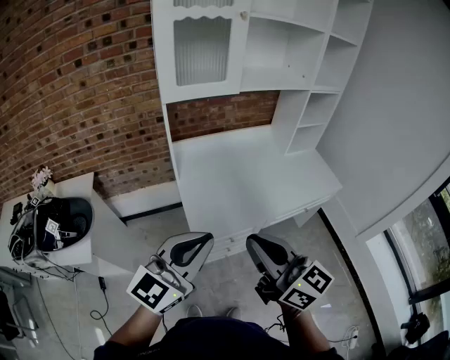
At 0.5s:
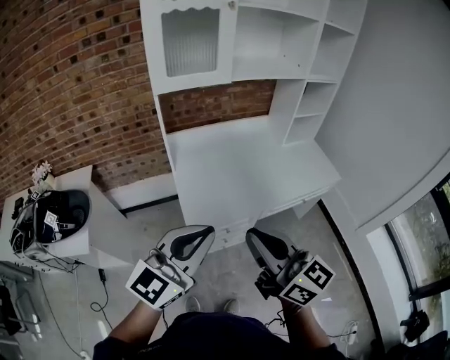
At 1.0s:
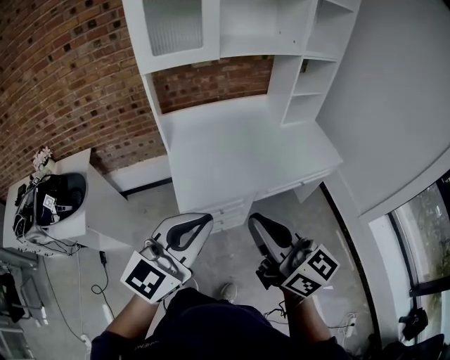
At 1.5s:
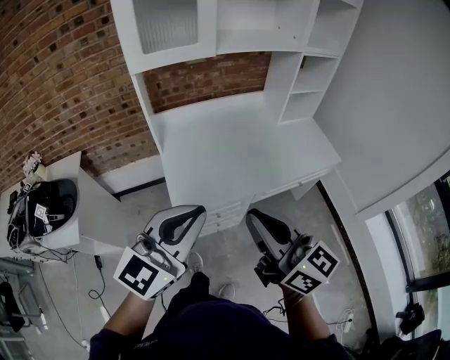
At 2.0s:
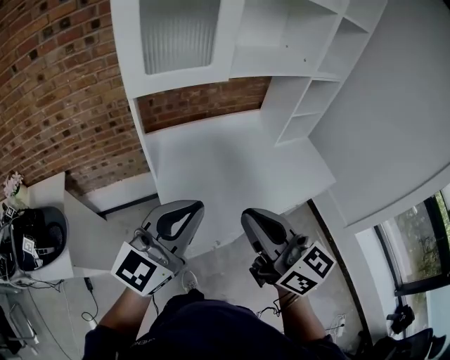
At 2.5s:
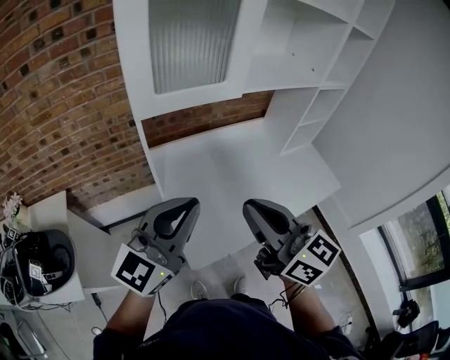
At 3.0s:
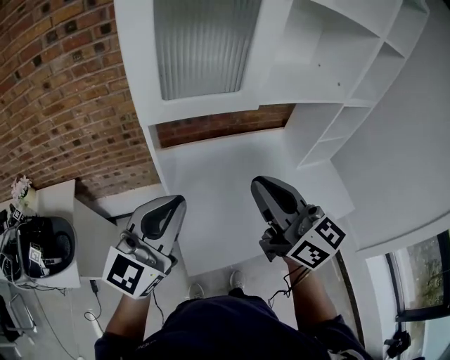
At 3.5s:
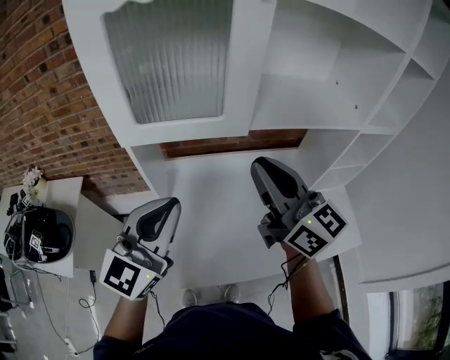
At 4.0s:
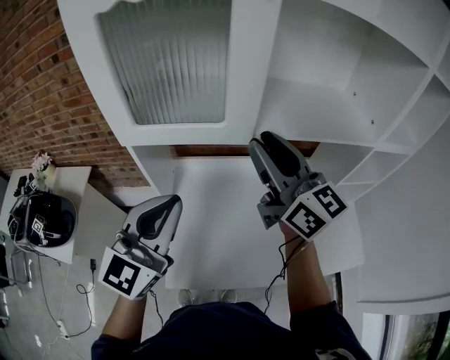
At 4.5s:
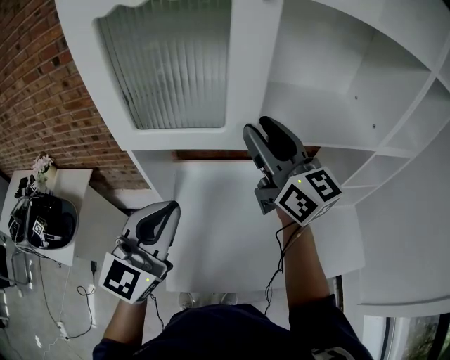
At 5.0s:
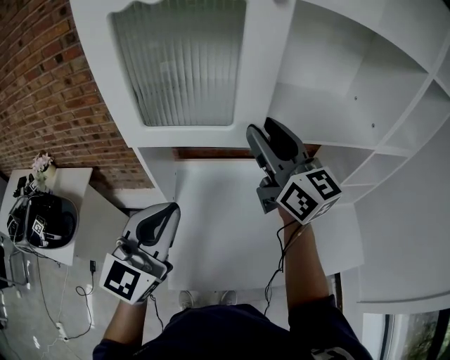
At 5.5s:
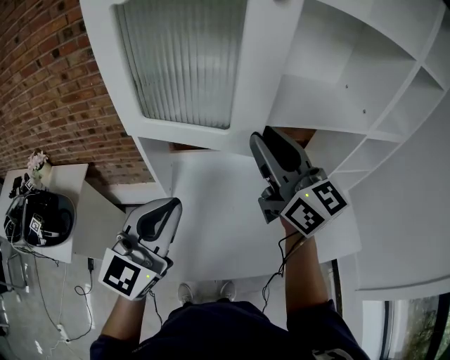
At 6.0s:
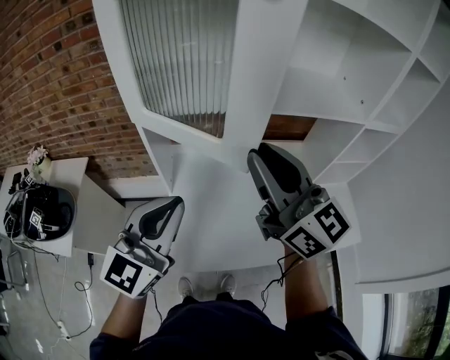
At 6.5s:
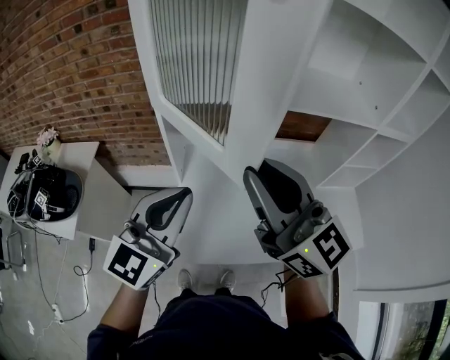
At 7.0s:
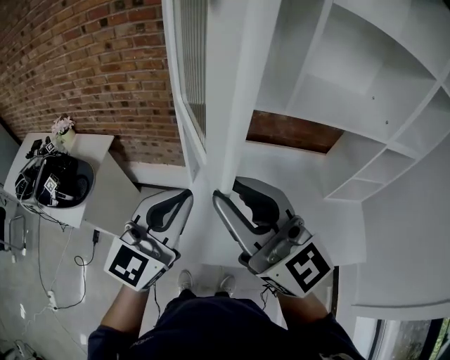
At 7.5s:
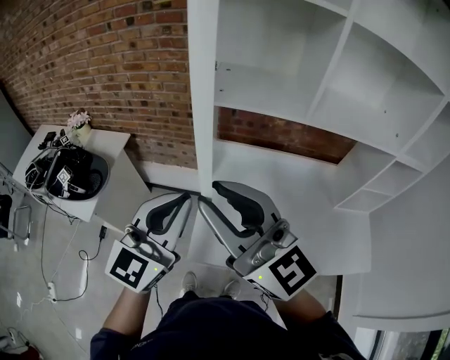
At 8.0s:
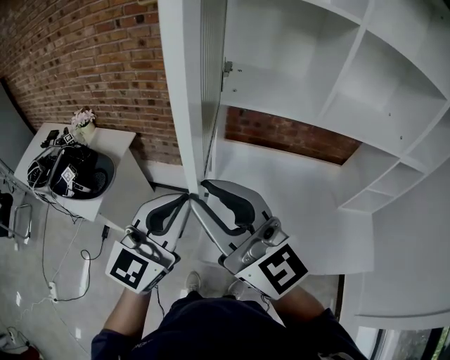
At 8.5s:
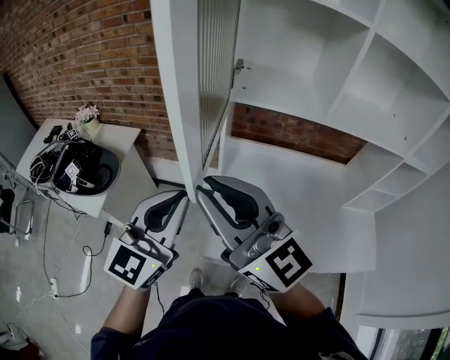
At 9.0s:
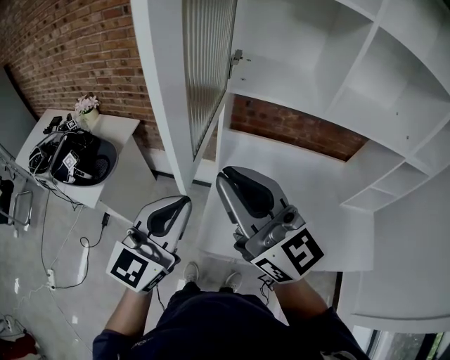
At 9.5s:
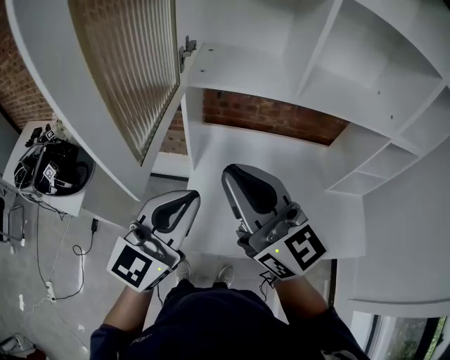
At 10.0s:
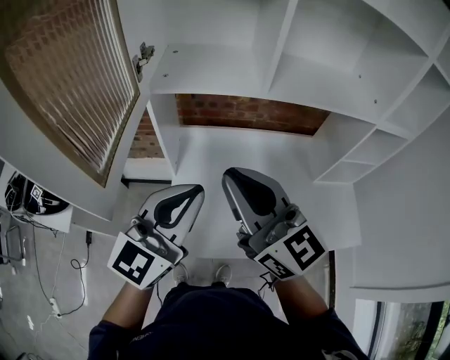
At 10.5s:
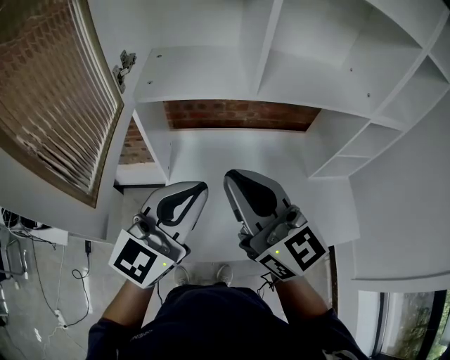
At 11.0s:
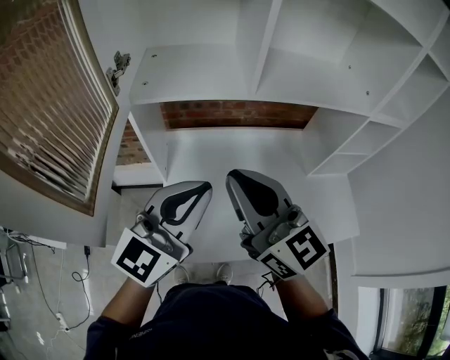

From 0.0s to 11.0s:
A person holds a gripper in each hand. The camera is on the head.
From 0.0s to 2.0s: Both grippers move forward, approximately 15 cm.
From 2.0s to 3.5s: The right gripper shifts roughly 30 cm forward, while the left gripper moves forward, roughly 20 cm, and swivels some 20 degrees.
From 3.5s to 5.5s: The right gripper goes forward and returns, roughly 10 cm each way, and opens.
From 5.5s to 7.5s: The left gripper goes approximately 10 cm to the left and backward. Meanwhile the right gripper is displaced to the left and backward by approximately 25 cm, and turns by approximately 30 degrees.
From 7.5s to 9.0s: The left gripper changes place by about 5 cm.
From 9.0s to 11.0s: The grippers both shift to the right and forward by approximately 20 cm. The right gripper turns by some 20 degrees; the left gripper rotates some 20 degrees.

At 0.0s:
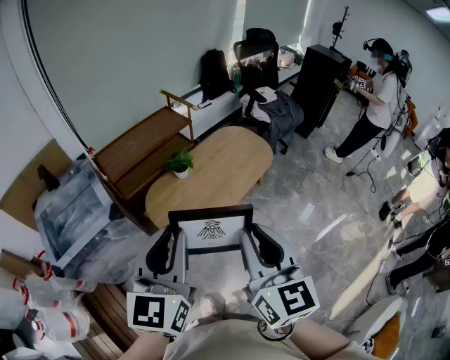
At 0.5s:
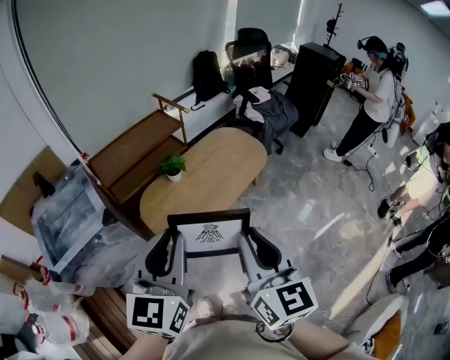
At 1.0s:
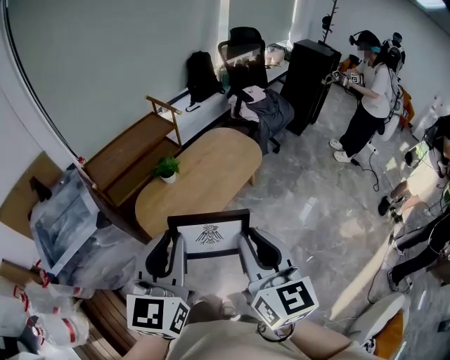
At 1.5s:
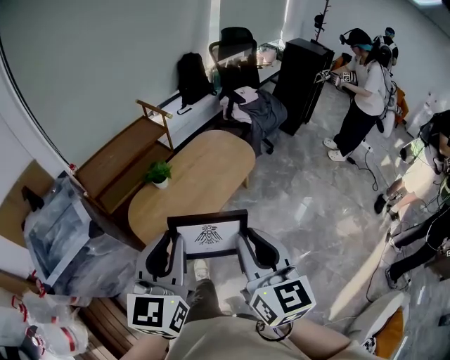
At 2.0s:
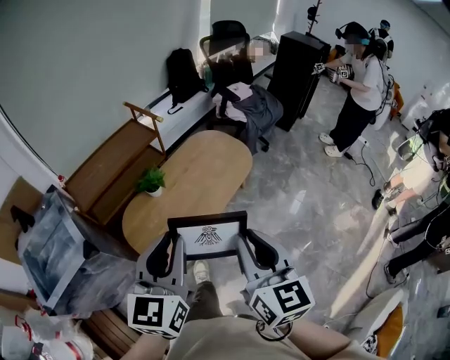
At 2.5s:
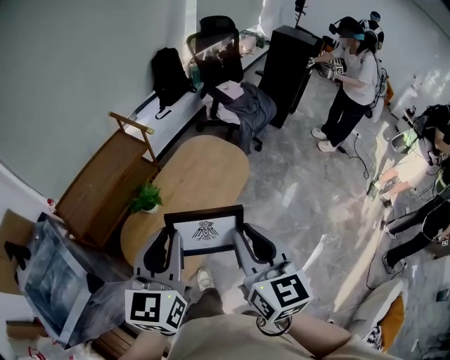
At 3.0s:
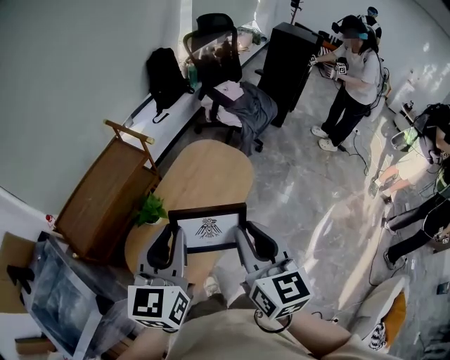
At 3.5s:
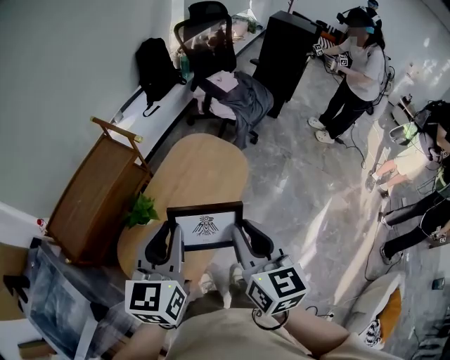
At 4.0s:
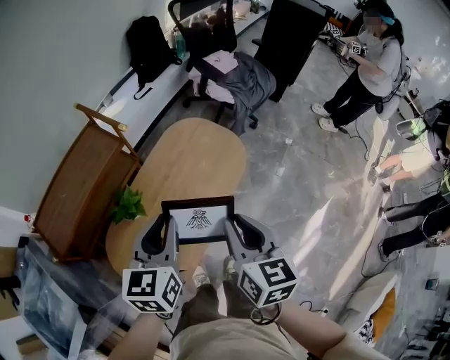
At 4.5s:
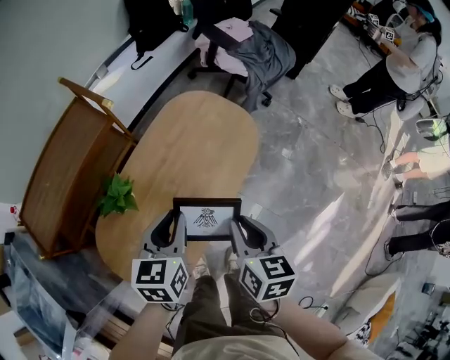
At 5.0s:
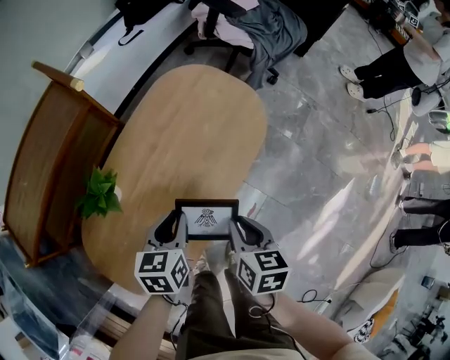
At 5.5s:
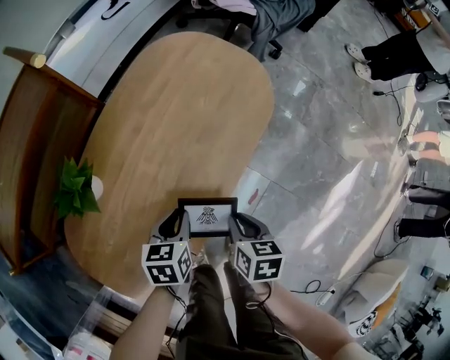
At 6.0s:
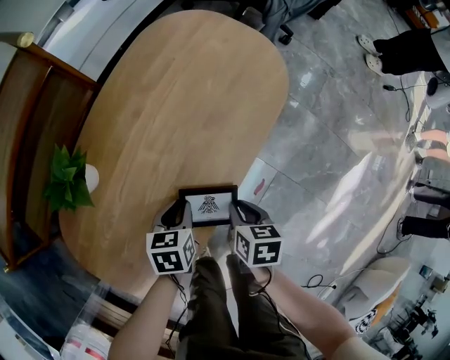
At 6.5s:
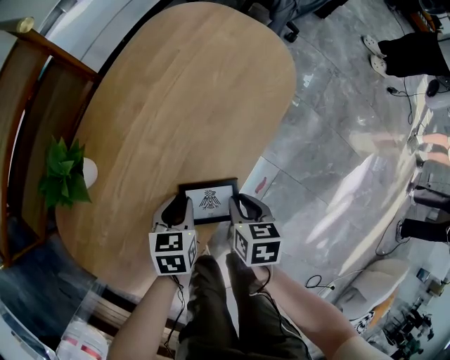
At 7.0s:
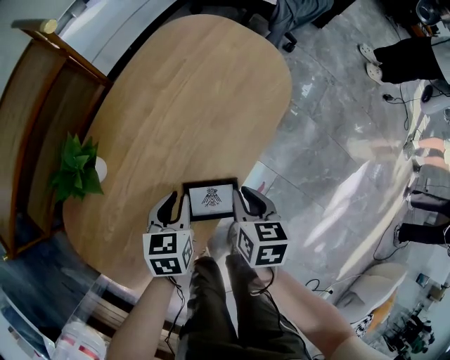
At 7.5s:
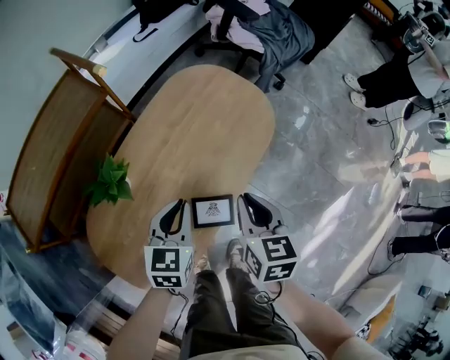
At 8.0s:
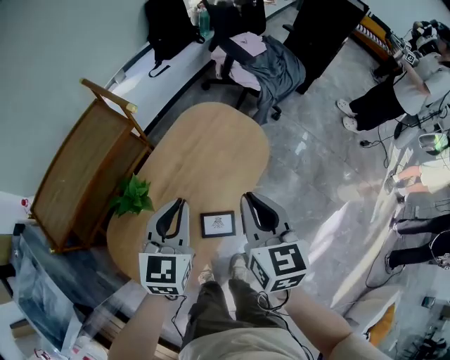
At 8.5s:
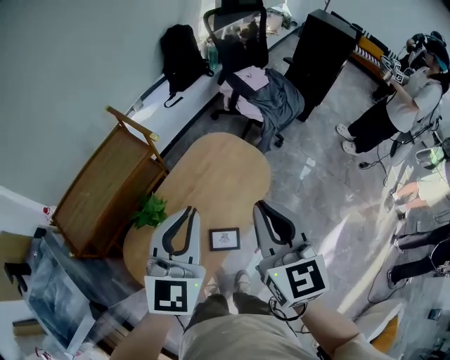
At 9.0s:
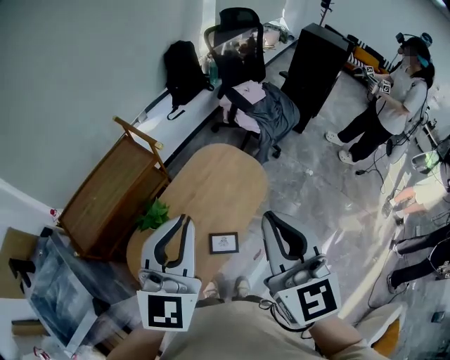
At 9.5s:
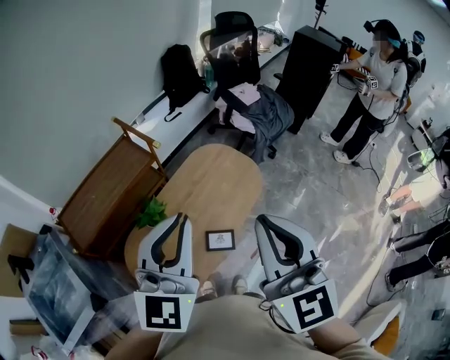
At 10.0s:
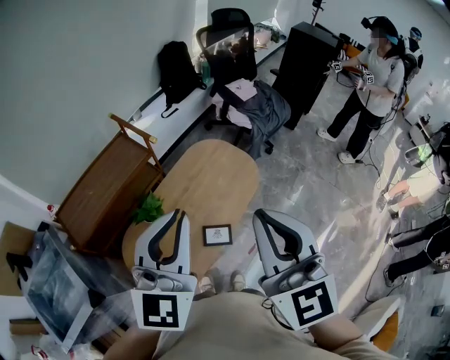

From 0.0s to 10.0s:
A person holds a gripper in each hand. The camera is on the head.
From 0.0s to 2.0s: Both grippers move forward, to the right and downward, about 15 cm.
From 2.0s to 4.0s: The grippers both shift forward and downward by about 35 cm.
From 4.0s to 6.0s: Both grippers move downward, roughly 60 cm. The right gripper tilts its fingers roughly 30 degrees downward, while the left gripper tips its fingers downward by some 30 degrees.
From 6.0s to 8.0s: Both grippers travel together upward, approximately 50 cm. The left gripper points its fingers roughly 40 degrees further upward, while the right gripper angles its fingers upward, by some 30 degrees.
From 8.0s to 10.0s: The two grippers go about 35 cm upward and backward. The right gripper rotates about 30 degrees, while the left gripper changes its angle by about 20 degrees.

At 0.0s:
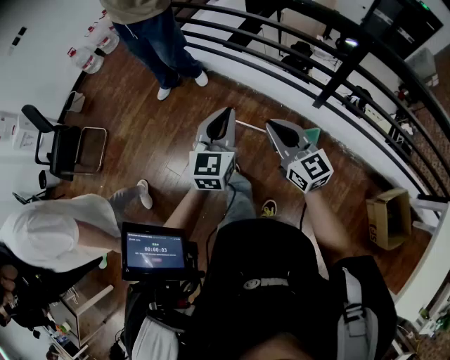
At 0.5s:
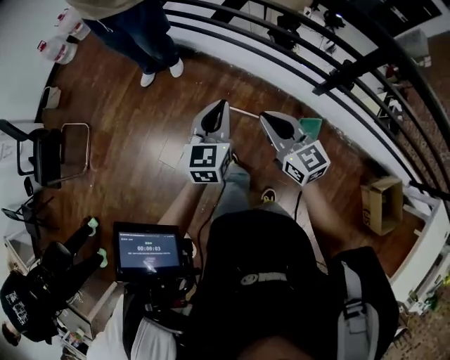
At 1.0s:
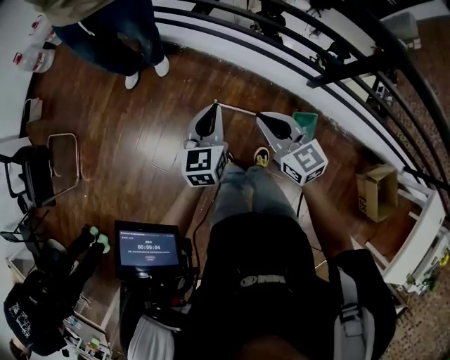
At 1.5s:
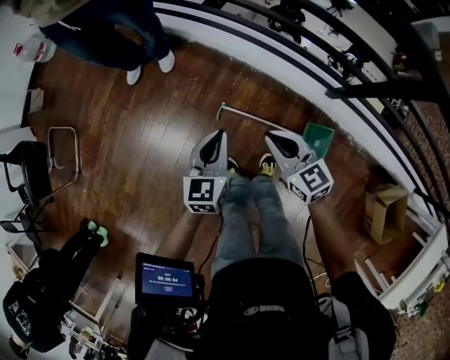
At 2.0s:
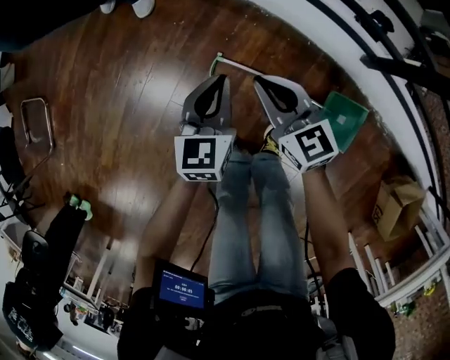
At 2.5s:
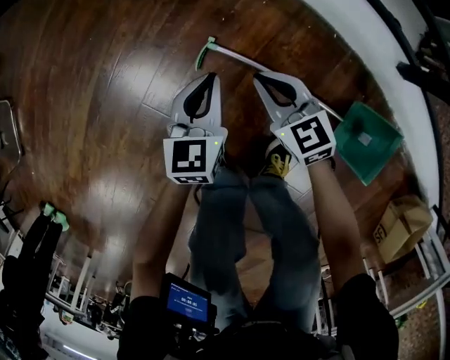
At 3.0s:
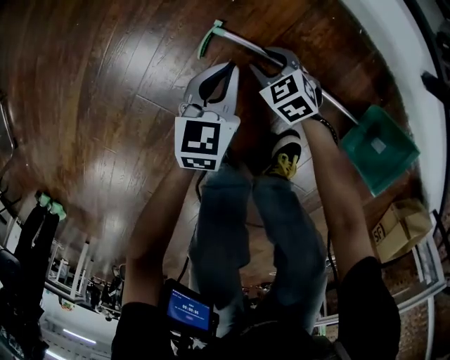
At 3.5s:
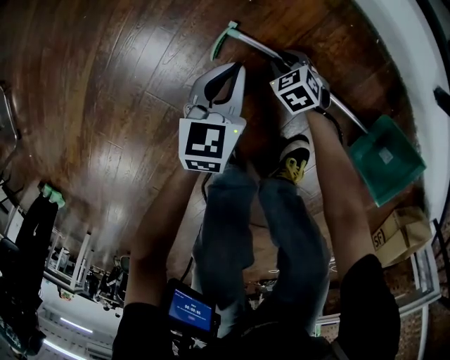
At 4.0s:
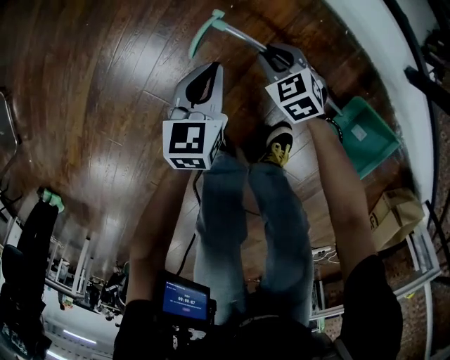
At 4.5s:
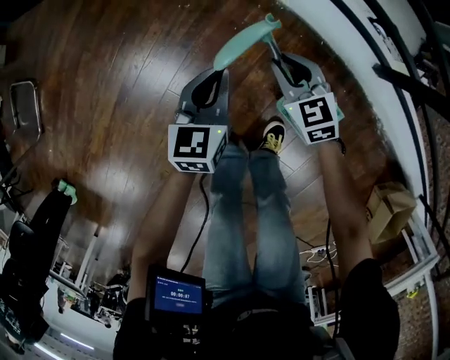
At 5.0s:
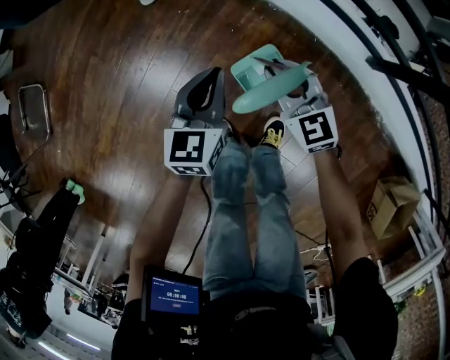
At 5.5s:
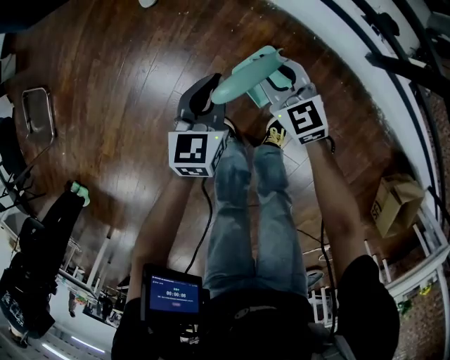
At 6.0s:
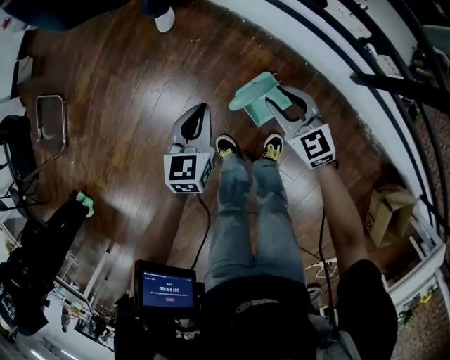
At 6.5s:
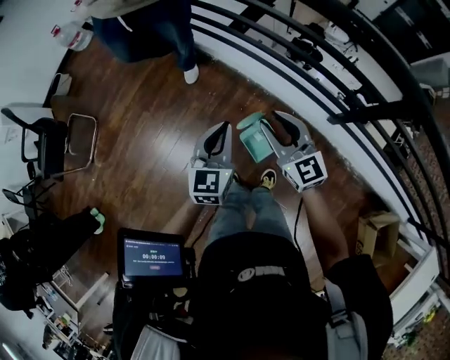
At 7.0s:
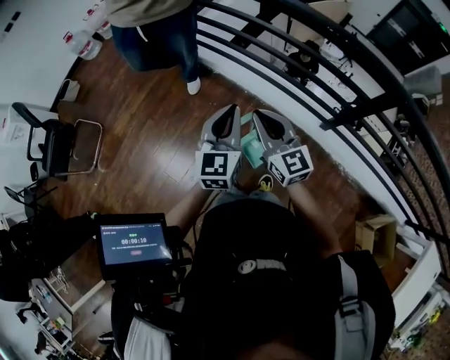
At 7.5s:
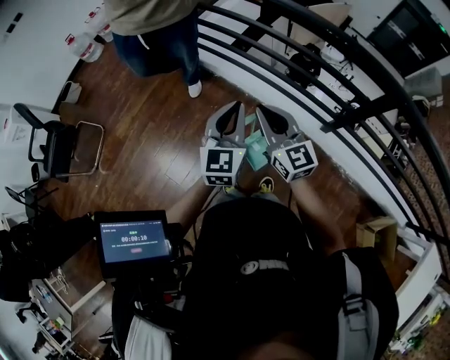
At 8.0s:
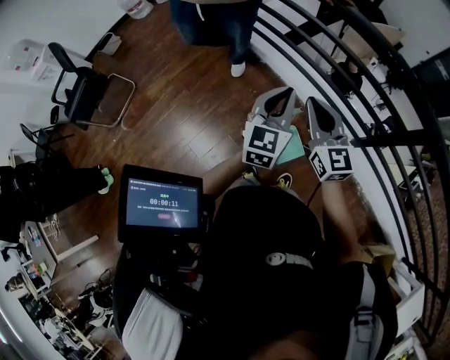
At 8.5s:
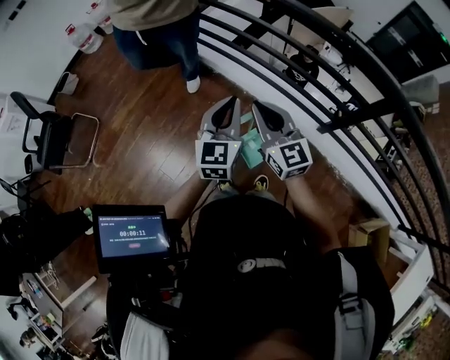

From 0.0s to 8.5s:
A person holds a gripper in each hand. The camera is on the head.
From 0.0s to 2.0s: Both grippers move downward and forward, roughly 50 cm. The left gripper swivels roughly 20 degrees.
From 2.0s to 4.0s: Both grippers travel together downward, roughly 30 cm. The right gripper angles its fingers downward, by about 30 degrees.
From 4.0s to 6.5s: The two grippers go about 60 cm upward. The right gripper angles its fingers upward, by about 50 degrees, while the left gripper rotates approximately 30 degrees.
From 6.5s to 8.5s: Both grippers move upward, some 10 cm. The right gripper closes.
